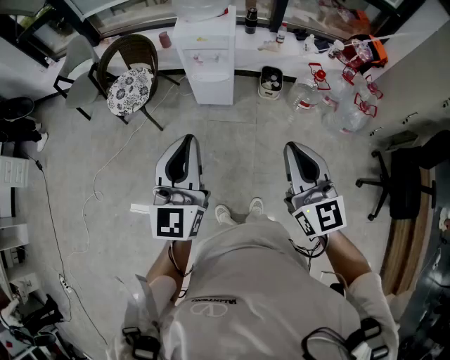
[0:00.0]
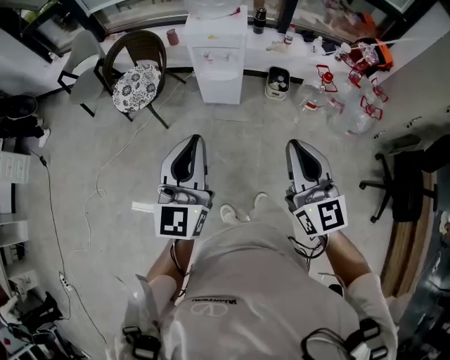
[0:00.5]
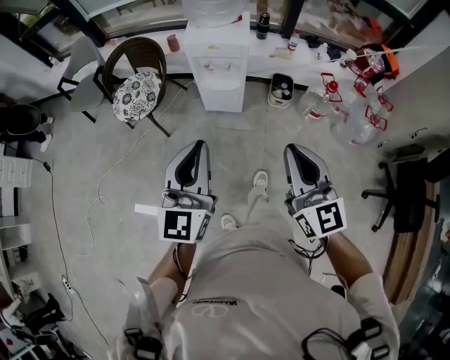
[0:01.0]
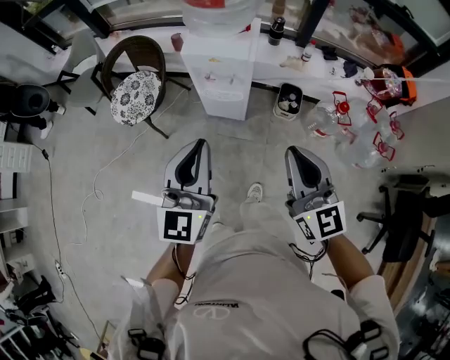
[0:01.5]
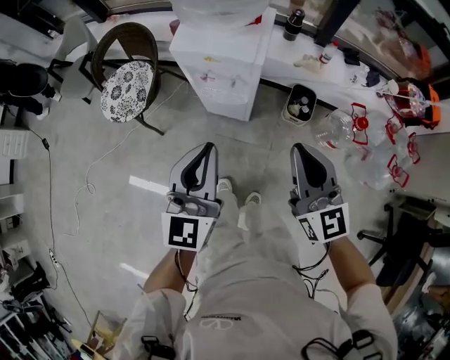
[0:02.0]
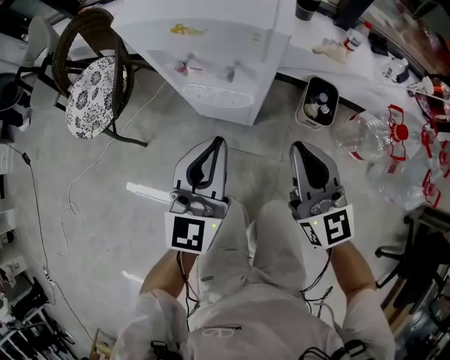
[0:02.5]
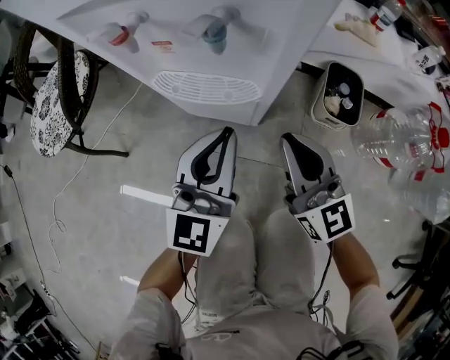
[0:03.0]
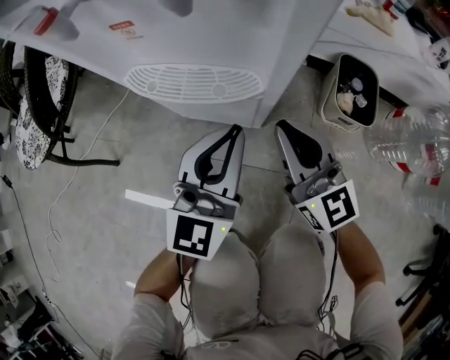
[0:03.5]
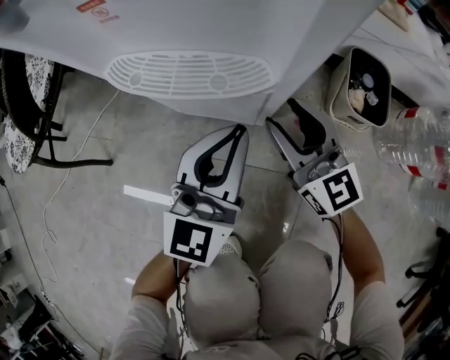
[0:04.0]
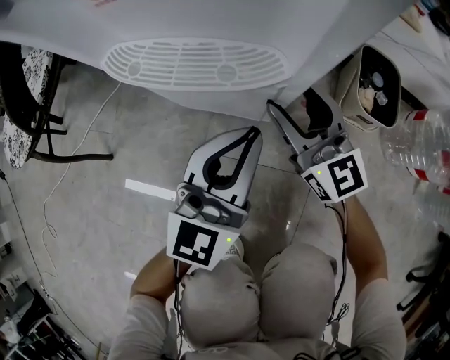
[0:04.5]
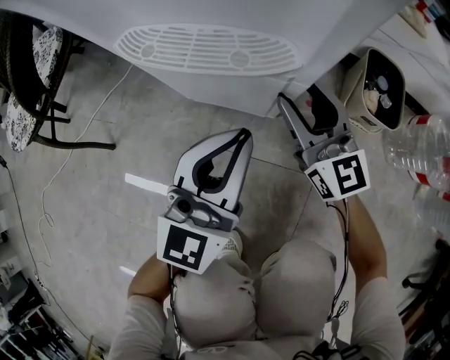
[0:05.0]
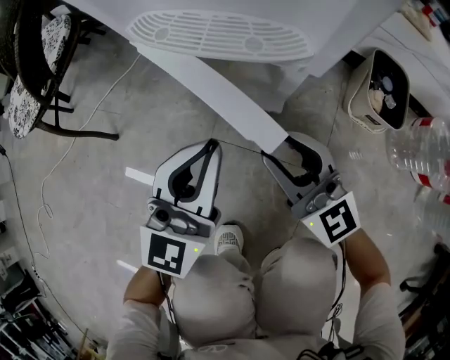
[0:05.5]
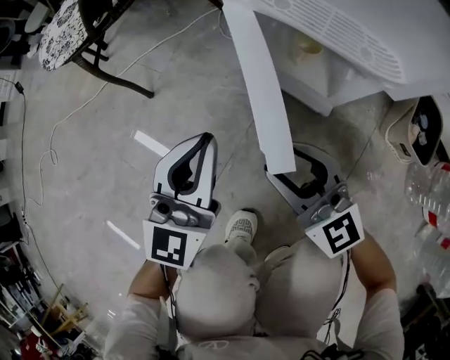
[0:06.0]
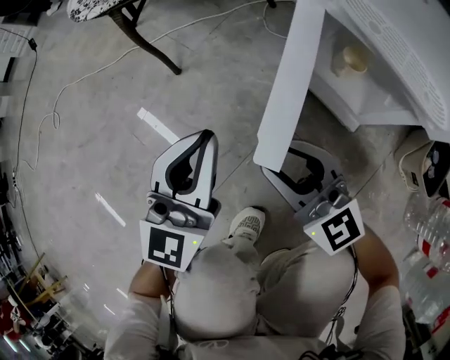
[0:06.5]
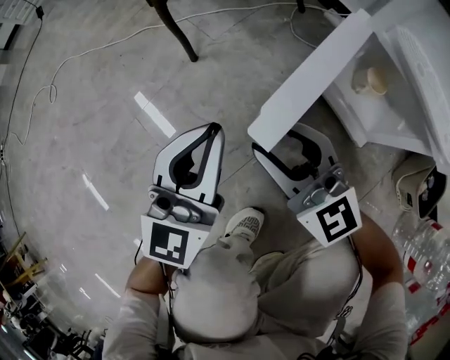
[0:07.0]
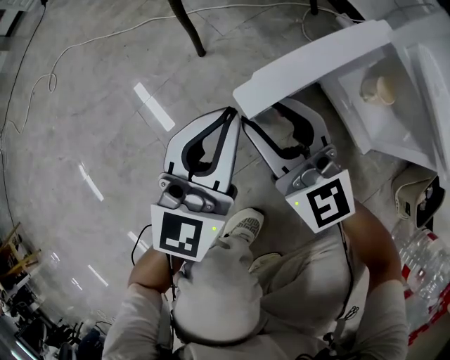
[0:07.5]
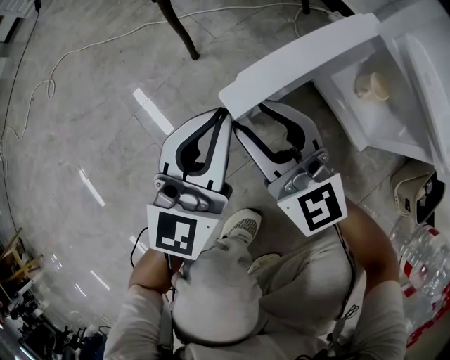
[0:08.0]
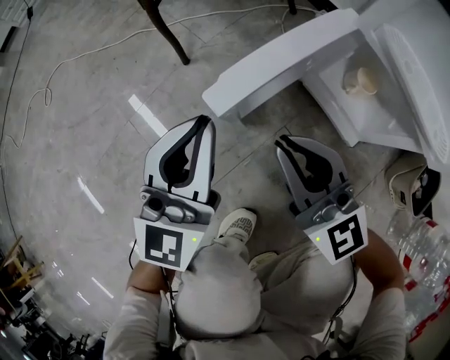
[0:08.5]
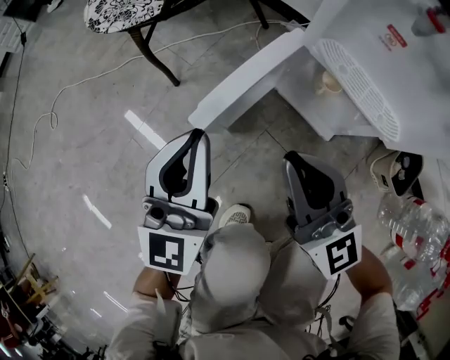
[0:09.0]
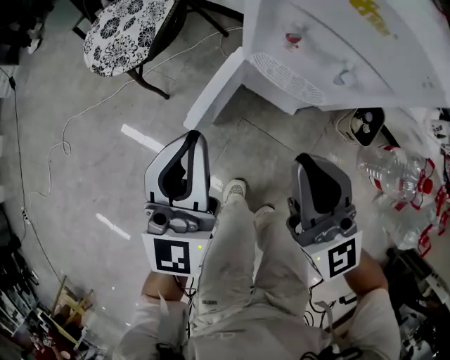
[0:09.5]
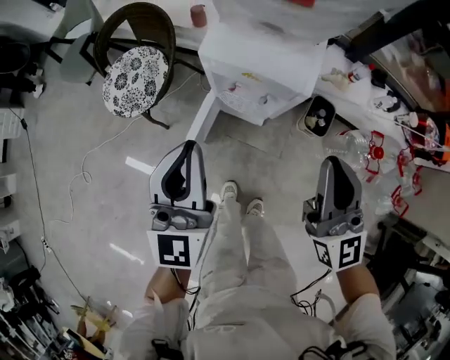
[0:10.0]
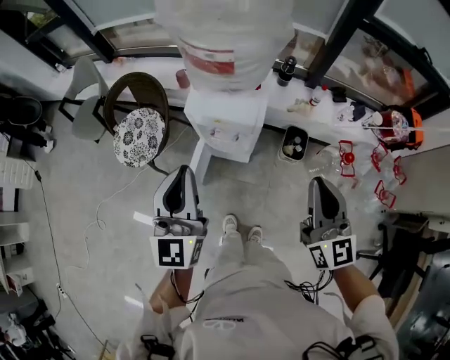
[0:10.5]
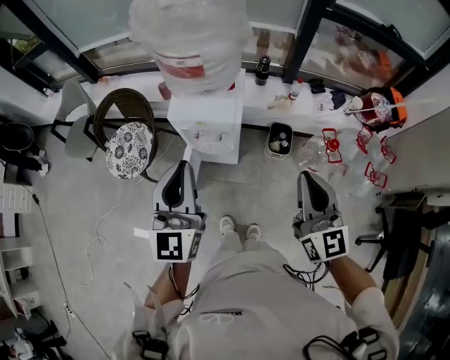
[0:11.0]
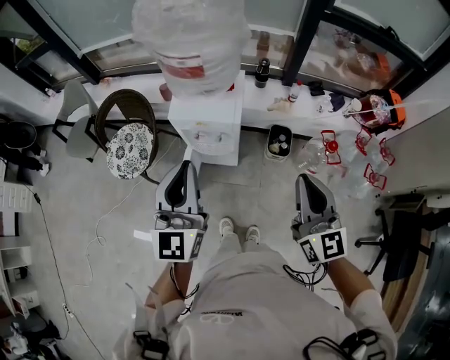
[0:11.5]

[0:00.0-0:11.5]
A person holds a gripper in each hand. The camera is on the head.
0.0 to 2.0 s: The left gripper moves forward and downward, about 35 cm, while the right gripper goes some 35 cm forward.
2.0 to 4.0 s: The grippers both shift downward and forward by about 60 cm. The right gripper opens up.
4.0 to 6.0 s: The right gripper ends up some 20 cm from where it was, and turns by some 30 degrees; the left gripper ends up some 20 cm from where it was, and rotates approximately 20 degrees.
6.0 to 7.5 s: The left gripper goes roughly 15 cm to the left and forward. The right gripper is displaced to the left and forward by about 20 cm.
7.5 to 9.5 s: The right gripper heads upward and to the right, covering some 40 cm, rotates roughly 30 degrees, and closes up; the left gripper shifts about 35 cm upward.
9.5 to 11.5 s: Both grippers travel together upward, some 40 cm. The right gripper turns by approximately 40 degrees.

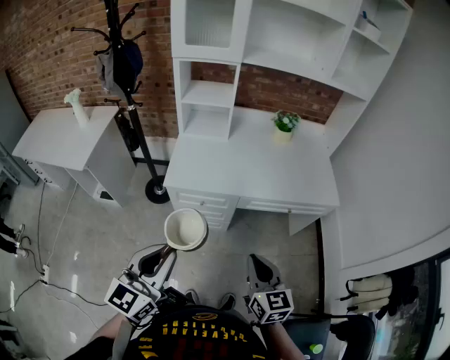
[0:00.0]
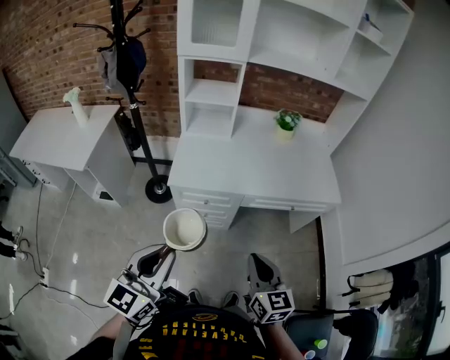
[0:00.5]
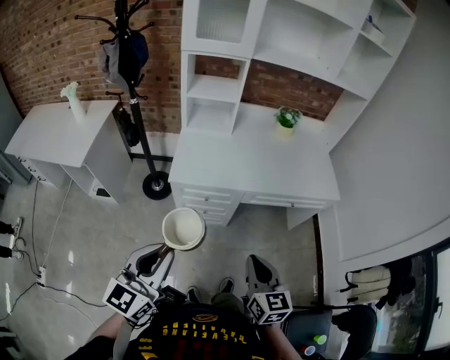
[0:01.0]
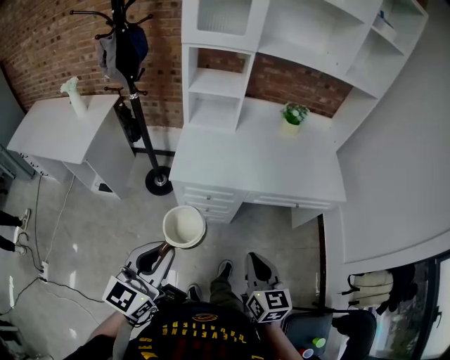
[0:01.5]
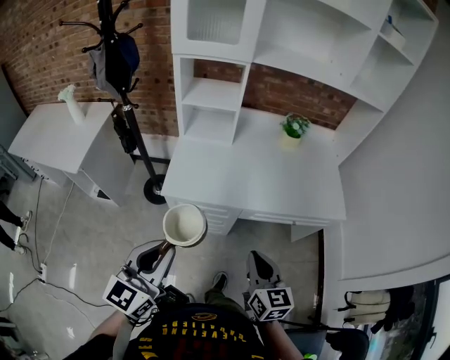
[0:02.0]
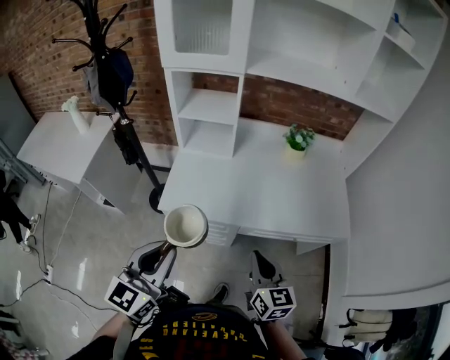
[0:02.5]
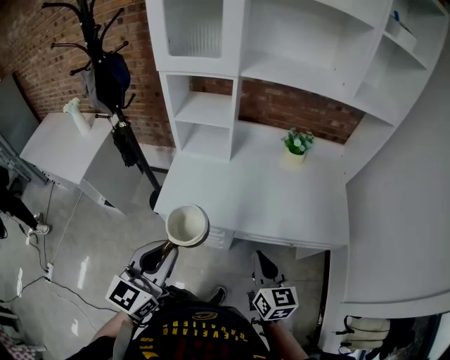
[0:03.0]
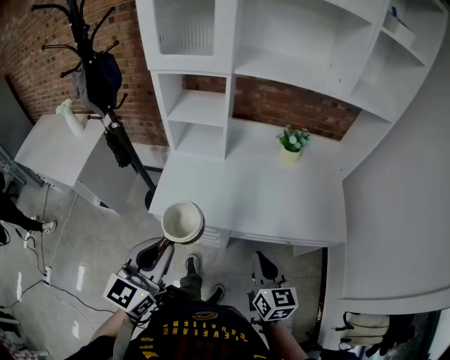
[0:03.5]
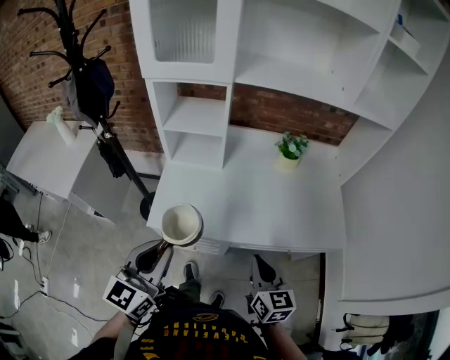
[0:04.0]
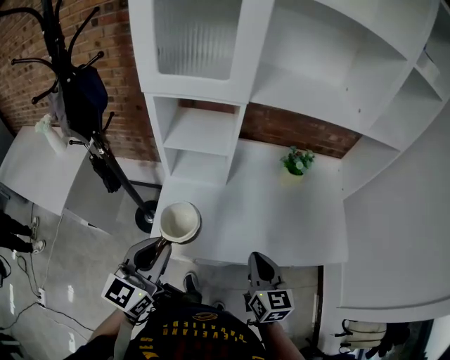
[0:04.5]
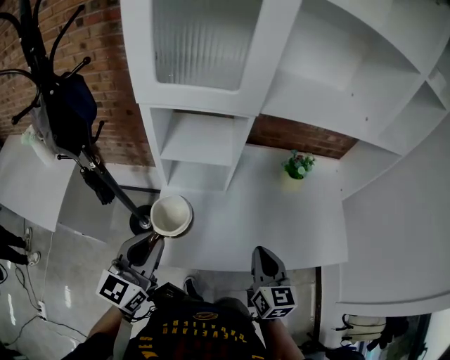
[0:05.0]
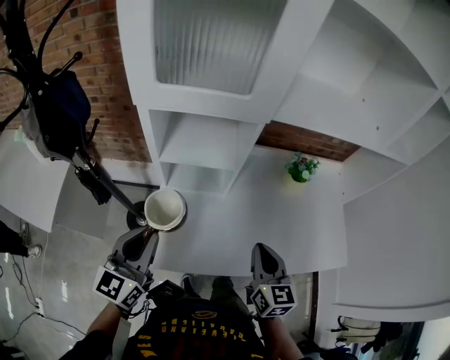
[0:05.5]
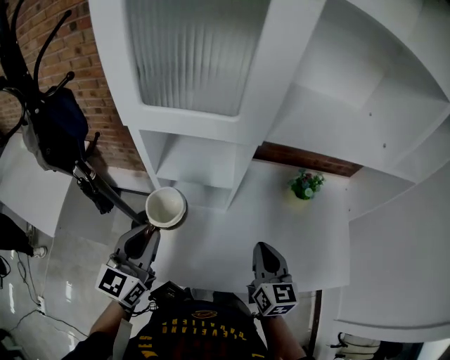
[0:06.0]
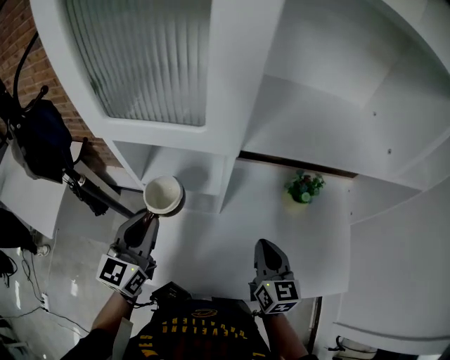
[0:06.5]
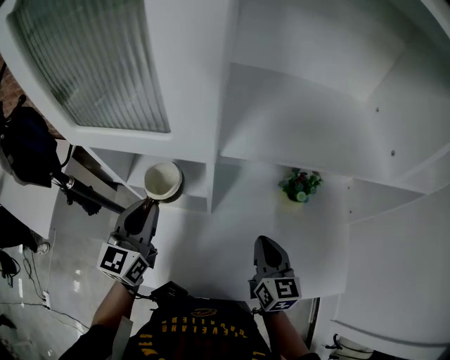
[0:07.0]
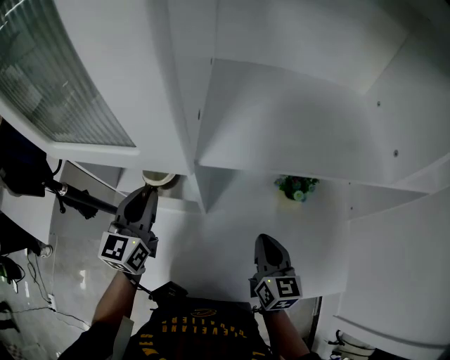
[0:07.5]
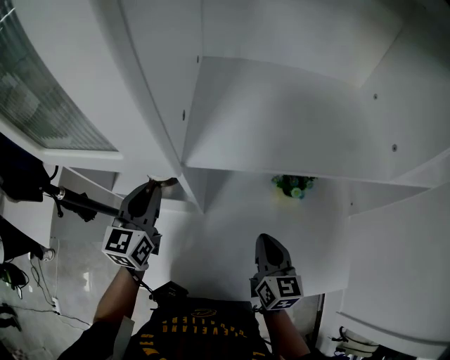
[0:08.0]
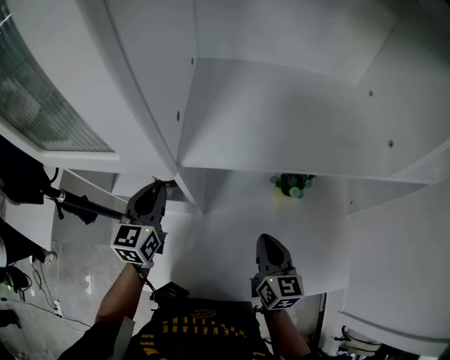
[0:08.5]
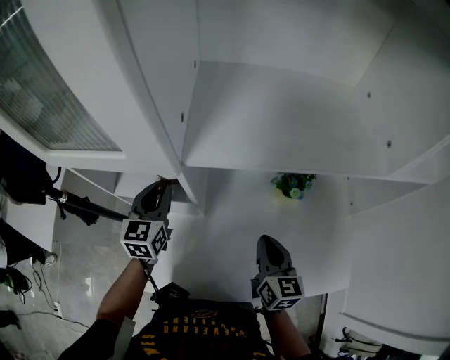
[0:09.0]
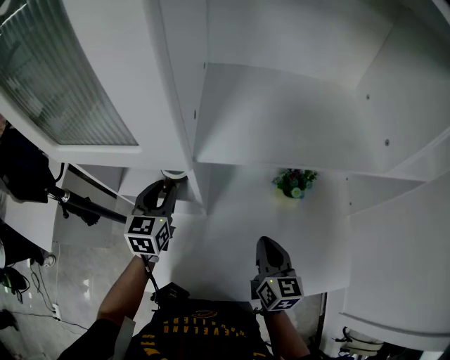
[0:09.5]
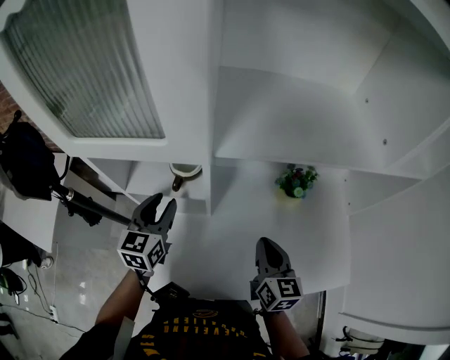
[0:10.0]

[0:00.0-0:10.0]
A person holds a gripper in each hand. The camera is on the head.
0.0 to 2.0 s: Both grippers move forward, approximately 10 cm.
2.0 to 4.0 s: The left gripper travels forward by some 15 cm. The right gripper travels forward and to the right by some 15 cm.
4.0 to 6.0 s: The right gripper heads forward, covering about 25 cm, while the left gripper shifts approximately 30 cm forward and to the left.
6.0 to 8.0 s: The left gripper travels forward and to the right by approximately 25 cm; the right gripper travels to the right and forward by some 15 cm.
8.0 to 10.0 s: The left gripper changes place by some 5 cm, and opens up. Meanwhile the right gripper moves about 5 cm.

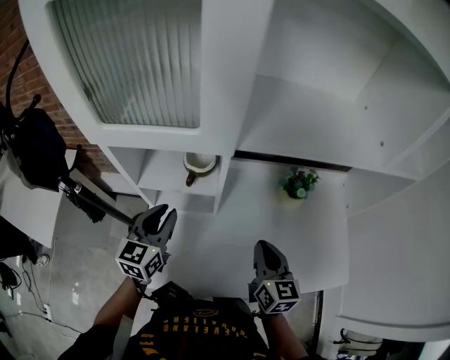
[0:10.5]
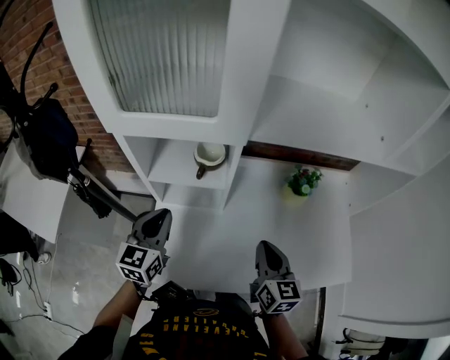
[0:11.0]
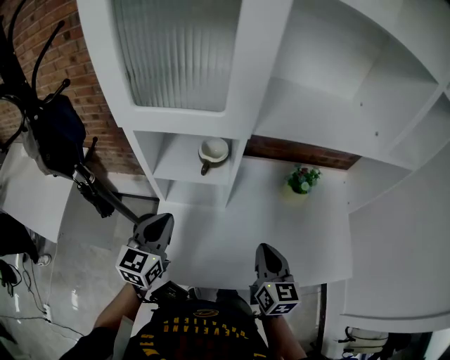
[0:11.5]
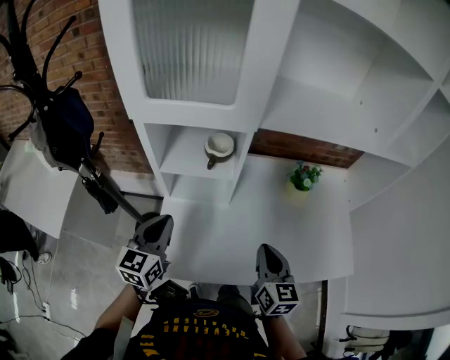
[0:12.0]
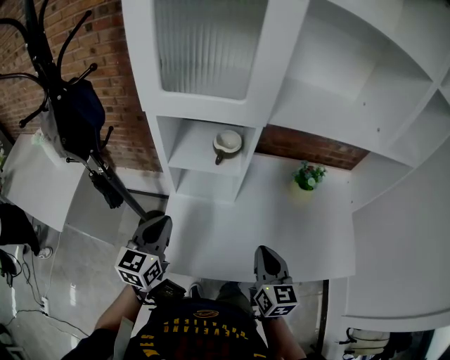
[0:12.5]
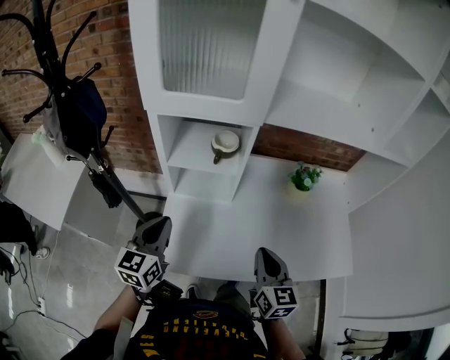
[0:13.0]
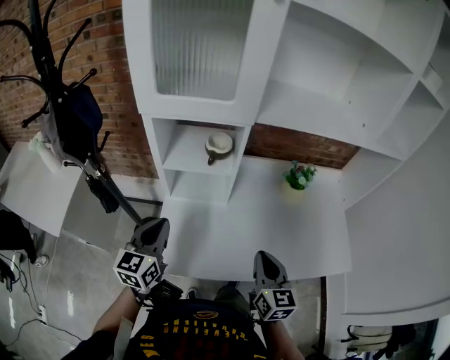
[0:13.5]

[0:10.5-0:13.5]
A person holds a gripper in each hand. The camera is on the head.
10.5 to 12.0 s: Both grippers travel together backward, approximately 10 cm. The left gripper closes.
12.0 to 13.5 s: The left gripper changes place by about 5 cm, while the right gripper shifts approximately 5 cm backward.

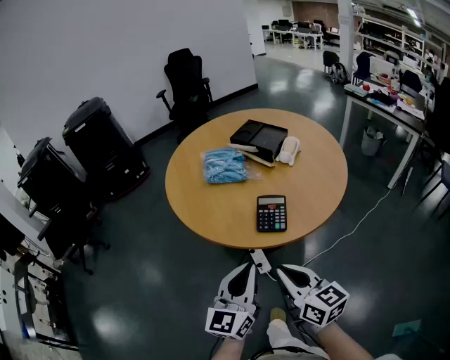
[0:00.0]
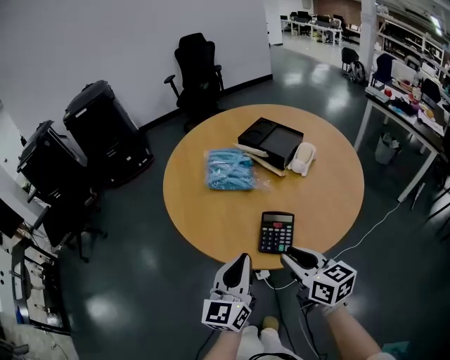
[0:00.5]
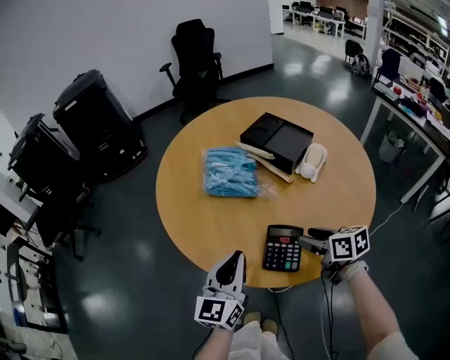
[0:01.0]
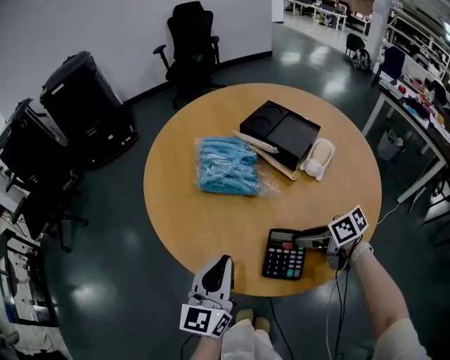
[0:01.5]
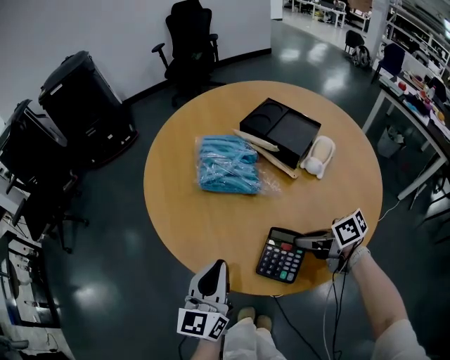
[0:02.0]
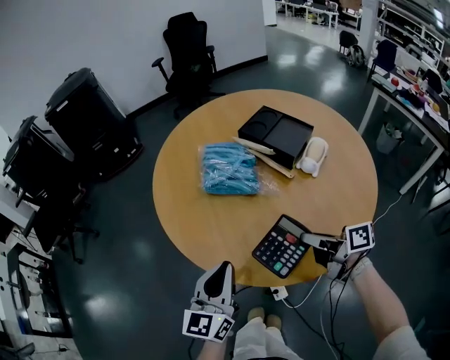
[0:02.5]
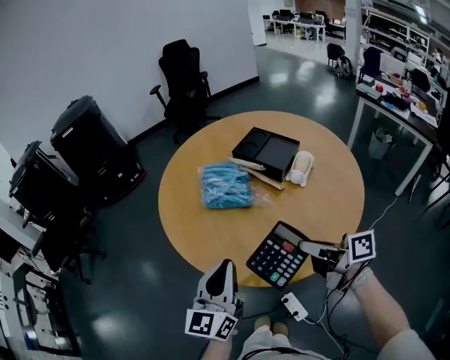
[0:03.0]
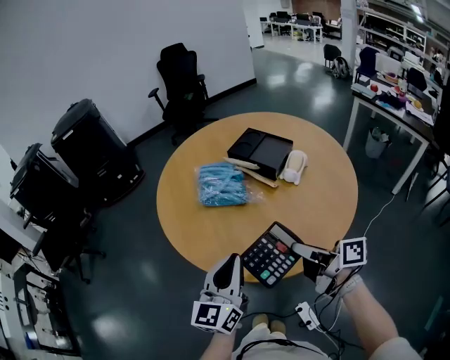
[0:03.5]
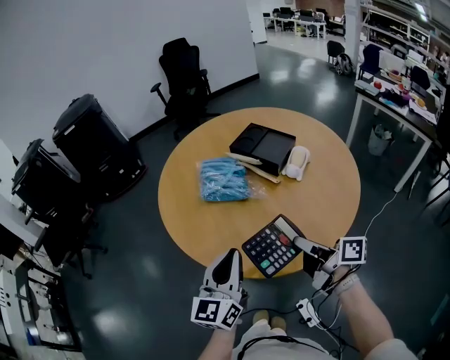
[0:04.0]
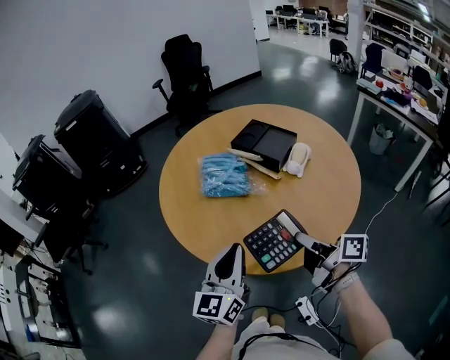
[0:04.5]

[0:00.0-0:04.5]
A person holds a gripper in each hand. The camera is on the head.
0.0 to 2.0 s: The left gripper changes place by roughly 30 cm. Meanwhile the right gripper changes place by approximately 35 cm, turns by approximately 50 degrees, and opens and closes again.
2.0 to 4.5 s: Both grippers move upward and backward, some 15 cm. The right gripper turns by some 40 degrees.
